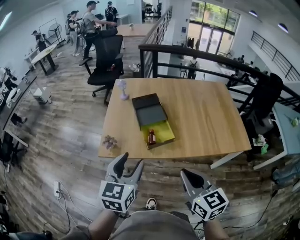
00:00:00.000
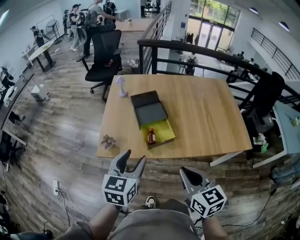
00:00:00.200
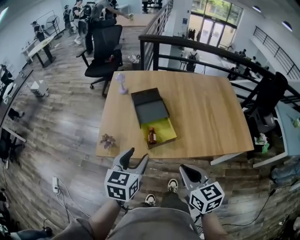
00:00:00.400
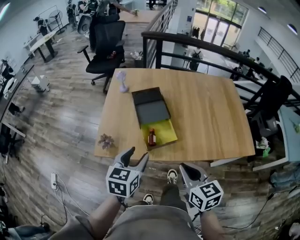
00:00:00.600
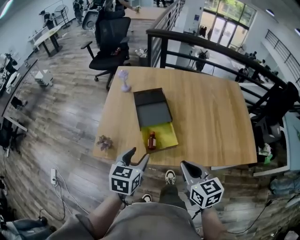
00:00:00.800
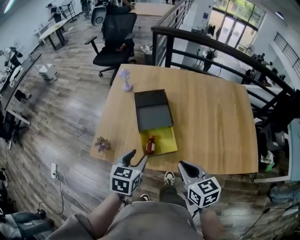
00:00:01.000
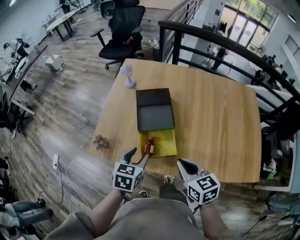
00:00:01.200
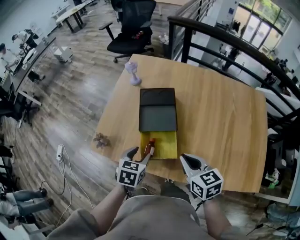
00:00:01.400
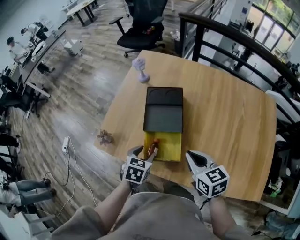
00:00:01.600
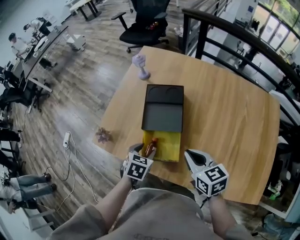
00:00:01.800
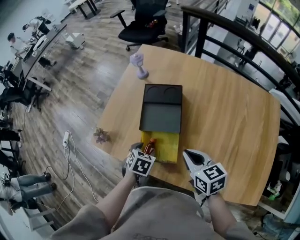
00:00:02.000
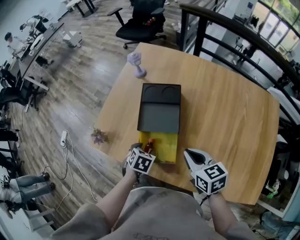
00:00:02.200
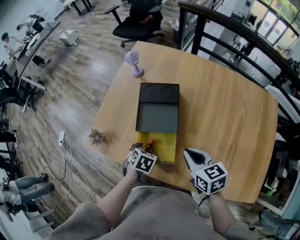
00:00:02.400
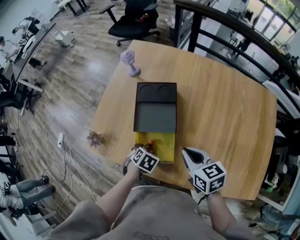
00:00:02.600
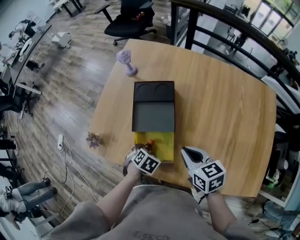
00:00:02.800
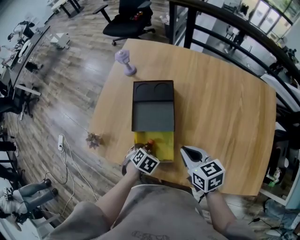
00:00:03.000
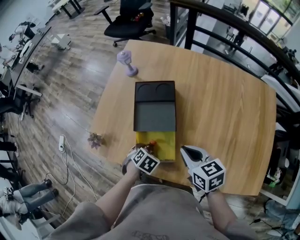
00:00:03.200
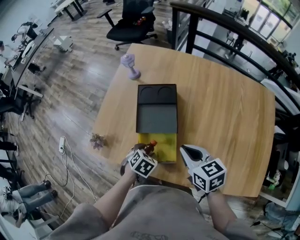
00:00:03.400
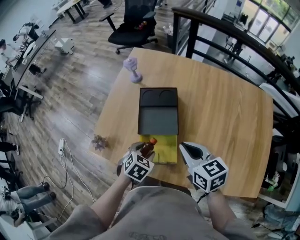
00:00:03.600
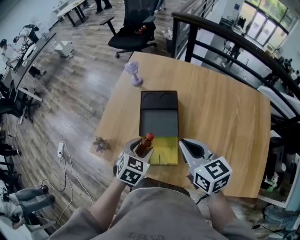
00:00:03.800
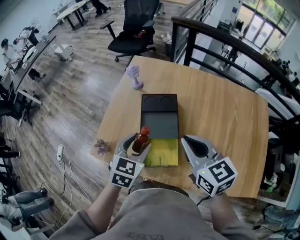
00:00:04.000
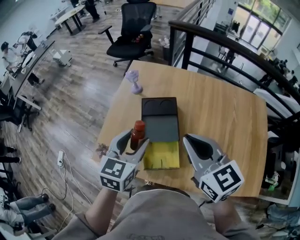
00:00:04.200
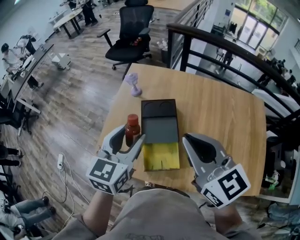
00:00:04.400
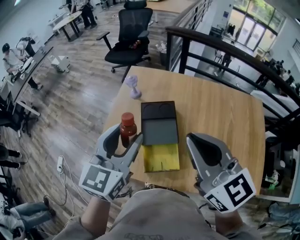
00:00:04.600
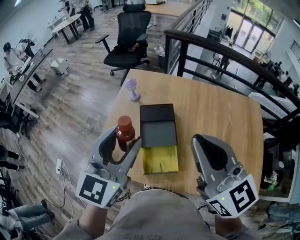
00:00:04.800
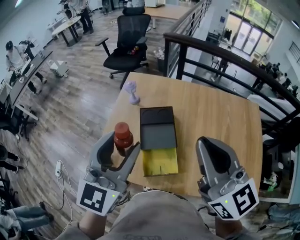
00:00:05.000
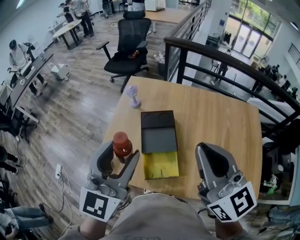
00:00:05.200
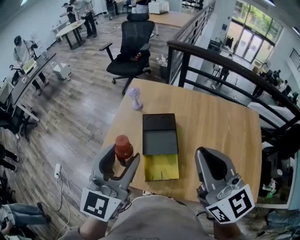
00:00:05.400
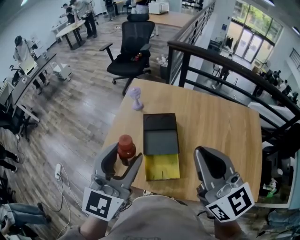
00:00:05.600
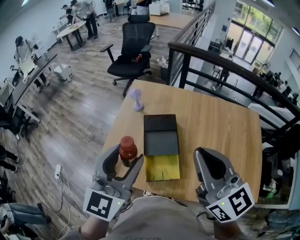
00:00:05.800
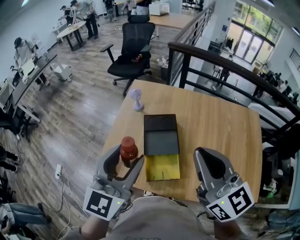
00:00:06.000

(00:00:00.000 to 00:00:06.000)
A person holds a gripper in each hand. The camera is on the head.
00:00:00.000 - 00:00:01.600: The left gripper goes some 35 cm downward and forward, and tilts its fingers about 40 degrees downward; the right gripper moves forward and downward, approximately 35 cm, and swivels roughly 30 degrees.
00:00:01.600 - 00:00:03.000: The left gripper heads downward, covering some 10 cm, and changes its angle by some 30 degrees. Meanwhile the right gripper changes place by approximately 5 cm.
00:00:03.000 - 00:00:04.400: Both grippers move upward, roughly 35 cm. The right gripper swivels about 40 degrees. The left gripper tips its fingers upward by about 60 degrees.
00:00:04.400 - 00:00:06.000: The right gripper heads upward, covering approximately 5 cm. The left gripper heads upward and backward, covering roughly 10 cm.

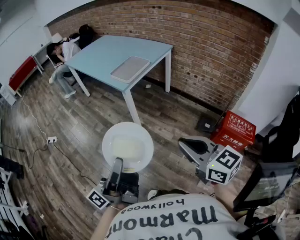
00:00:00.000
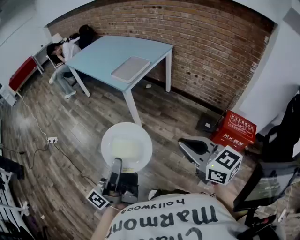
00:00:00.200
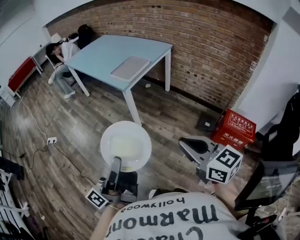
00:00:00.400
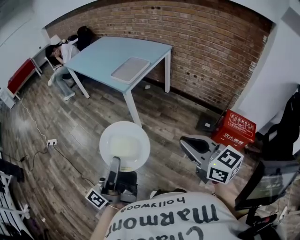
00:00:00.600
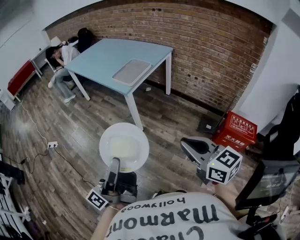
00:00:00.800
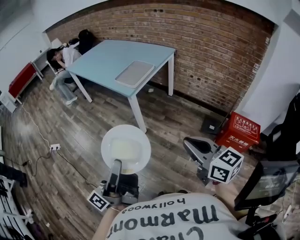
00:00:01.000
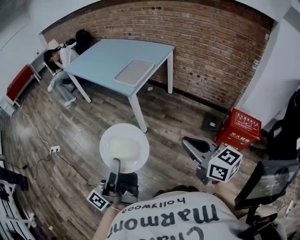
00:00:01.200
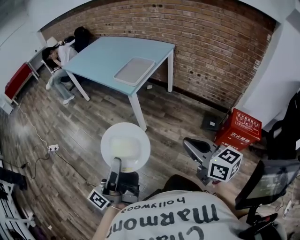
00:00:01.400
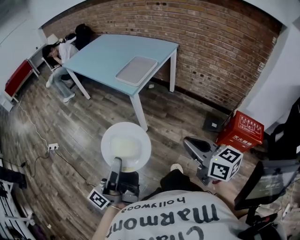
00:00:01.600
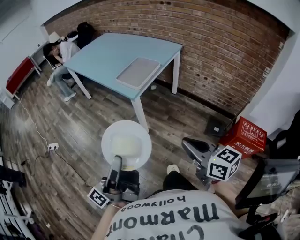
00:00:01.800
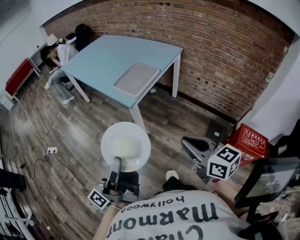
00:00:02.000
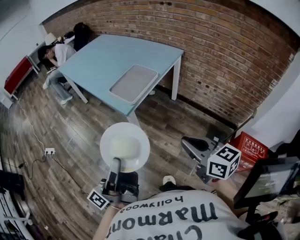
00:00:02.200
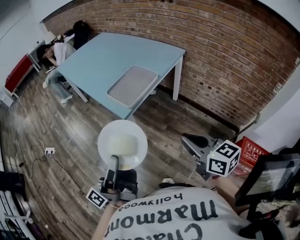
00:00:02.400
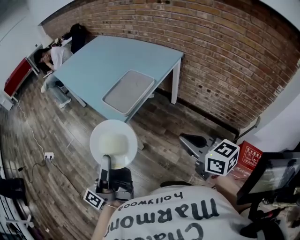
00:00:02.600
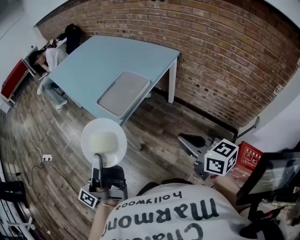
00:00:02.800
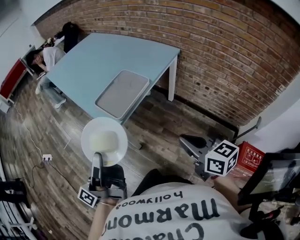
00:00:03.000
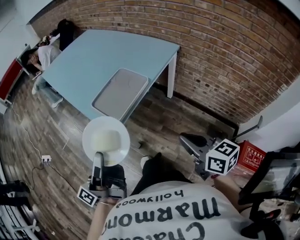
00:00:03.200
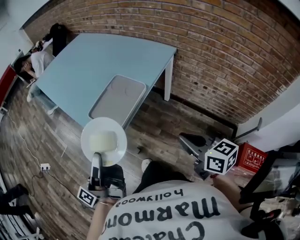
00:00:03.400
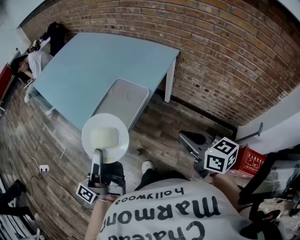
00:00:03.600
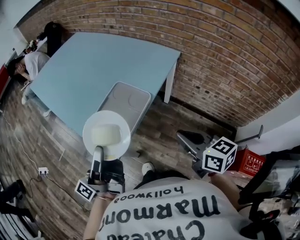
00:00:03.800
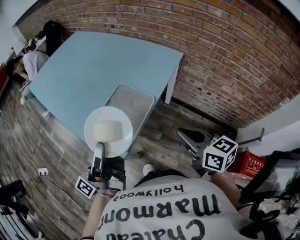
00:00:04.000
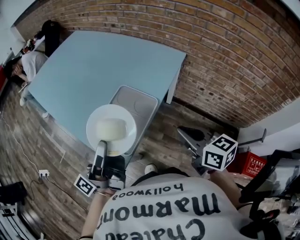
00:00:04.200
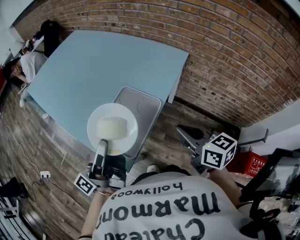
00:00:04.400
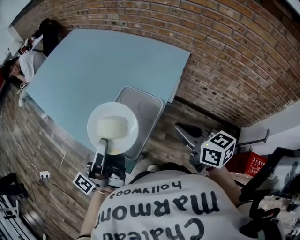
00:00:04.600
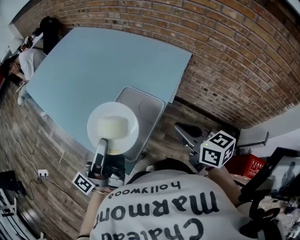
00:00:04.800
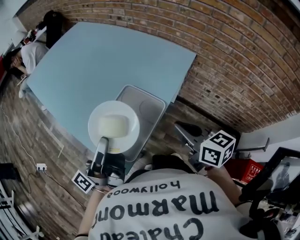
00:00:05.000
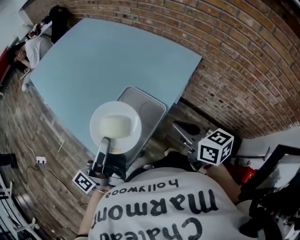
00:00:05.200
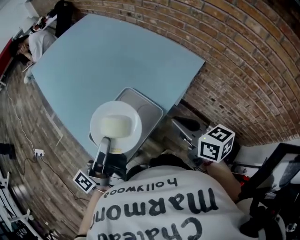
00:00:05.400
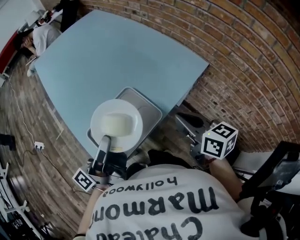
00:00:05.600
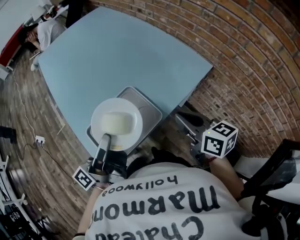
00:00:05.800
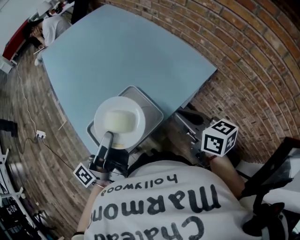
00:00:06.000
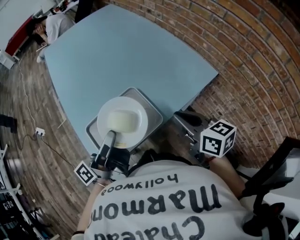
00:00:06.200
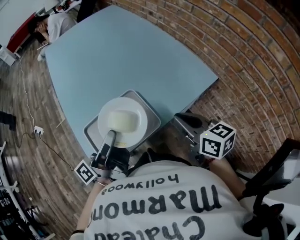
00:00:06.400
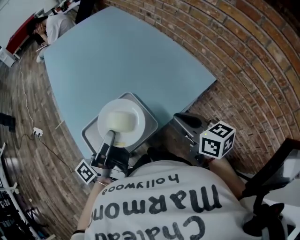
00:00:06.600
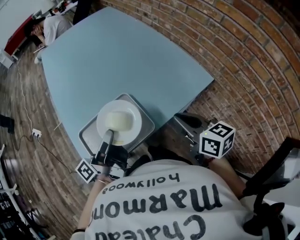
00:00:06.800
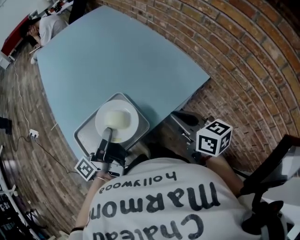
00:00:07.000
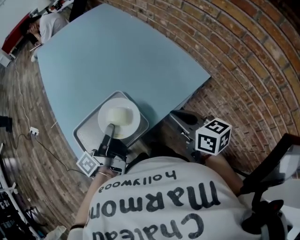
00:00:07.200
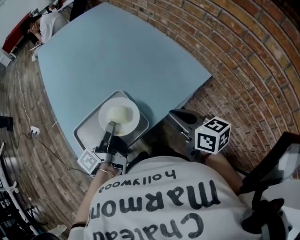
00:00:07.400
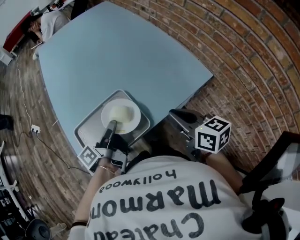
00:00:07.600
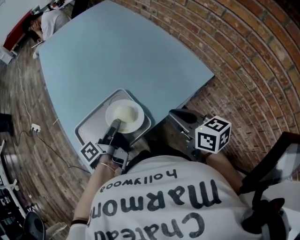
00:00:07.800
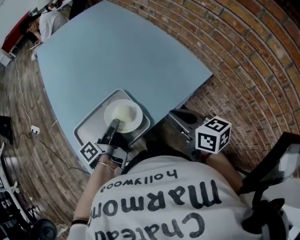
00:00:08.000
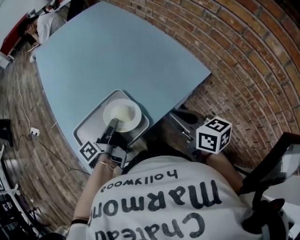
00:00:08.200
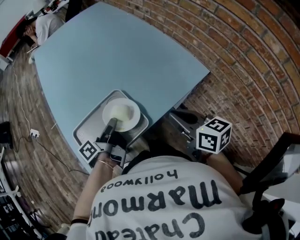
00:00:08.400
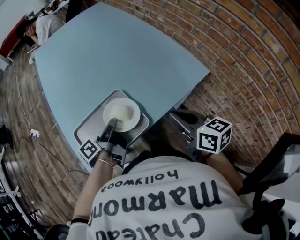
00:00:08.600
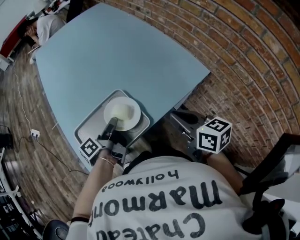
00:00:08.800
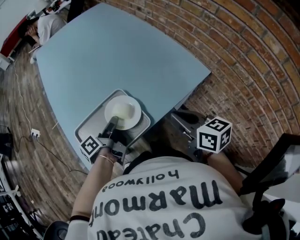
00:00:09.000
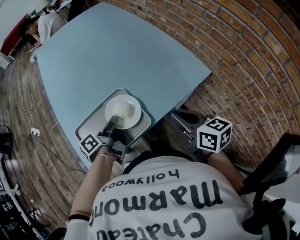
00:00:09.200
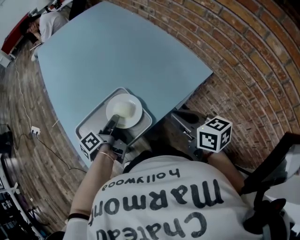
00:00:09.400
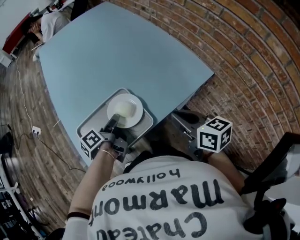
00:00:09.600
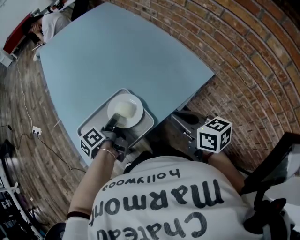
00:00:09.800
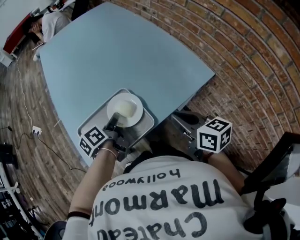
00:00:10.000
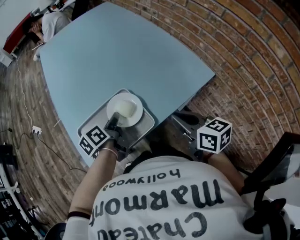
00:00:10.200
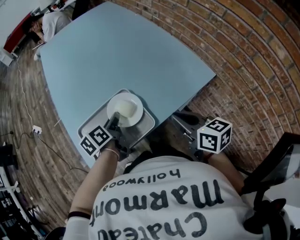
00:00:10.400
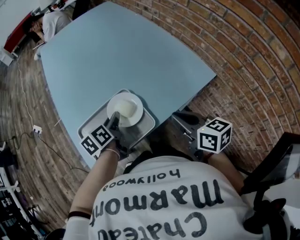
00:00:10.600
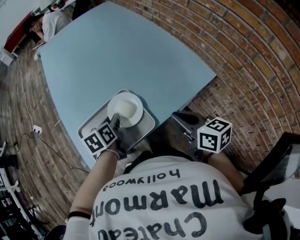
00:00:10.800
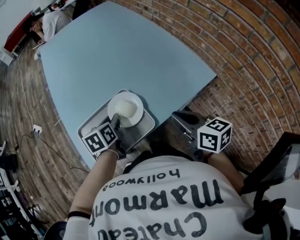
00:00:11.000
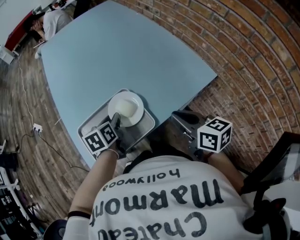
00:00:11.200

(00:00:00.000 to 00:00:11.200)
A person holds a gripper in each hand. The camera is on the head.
00:00:00.000 - 00:00:01.600: The right gripper ends up about 10 cm from where it was.
00:00:01.600 - 00:00:03.200: The right gripper ends up approximately 40 cm from where it was.
00:00:03.200 - 00:00:04.800: The right gripper ends up about 25 cm from where it was.
00:00:04.800 - 00:00:06.400: The right gripper shifts by about 15 cm, and rotates some 20 degrees.

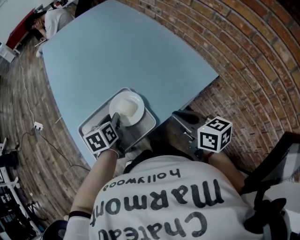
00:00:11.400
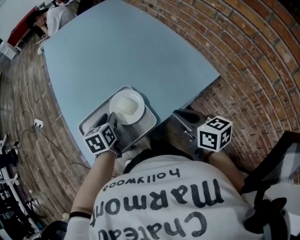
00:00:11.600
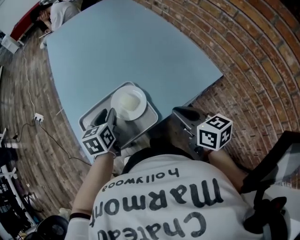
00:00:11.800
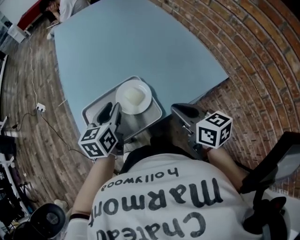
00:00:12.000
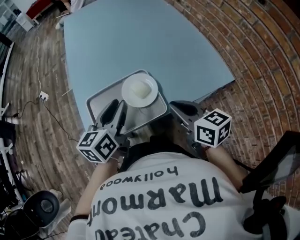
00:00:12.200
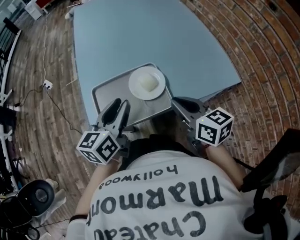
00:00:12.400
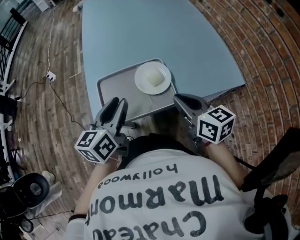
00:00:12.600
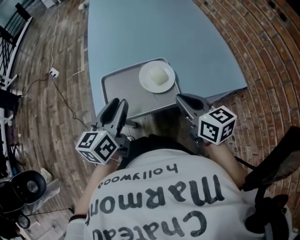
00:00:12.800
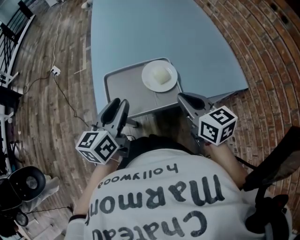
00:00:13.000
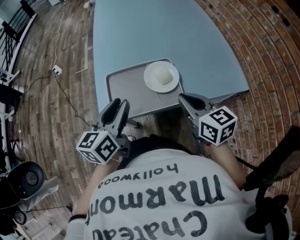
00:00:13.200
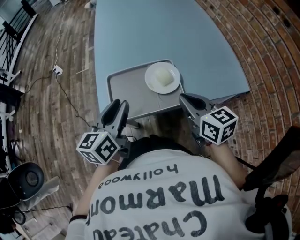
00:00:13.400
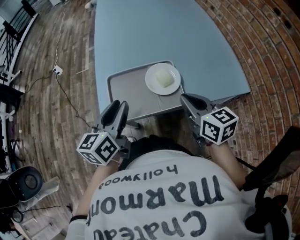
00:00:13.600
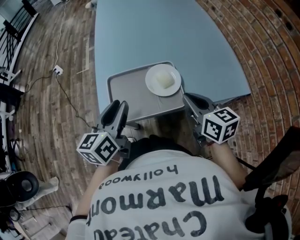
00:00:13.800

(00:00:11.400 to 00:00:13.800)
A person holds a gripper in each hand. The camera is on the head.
00:00:11.400 - 00:00:12.600: The right gripper changes place by roughly 10 cm.

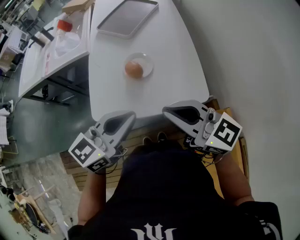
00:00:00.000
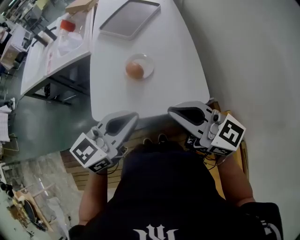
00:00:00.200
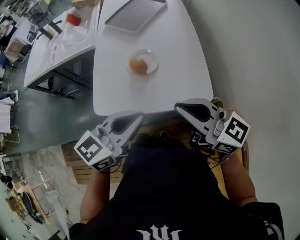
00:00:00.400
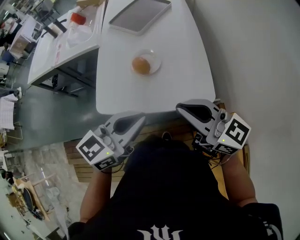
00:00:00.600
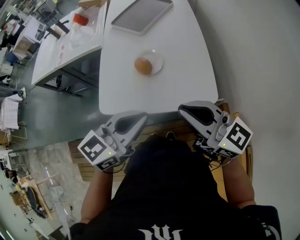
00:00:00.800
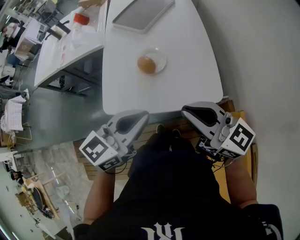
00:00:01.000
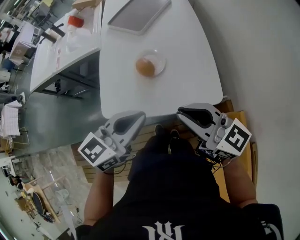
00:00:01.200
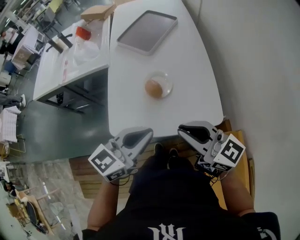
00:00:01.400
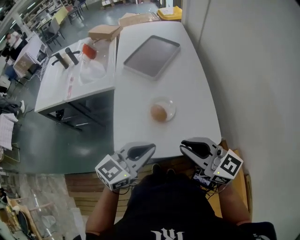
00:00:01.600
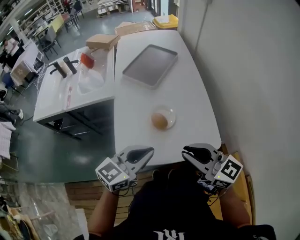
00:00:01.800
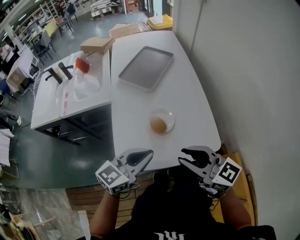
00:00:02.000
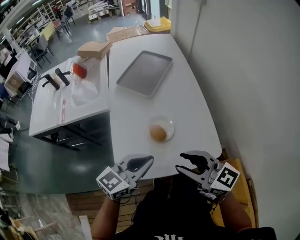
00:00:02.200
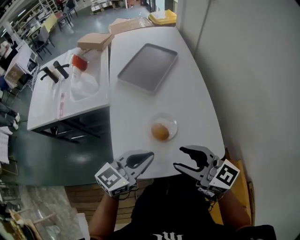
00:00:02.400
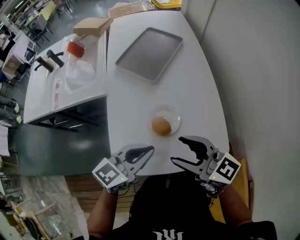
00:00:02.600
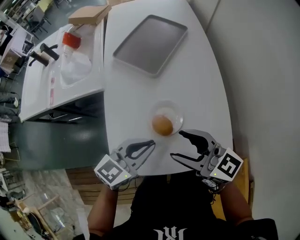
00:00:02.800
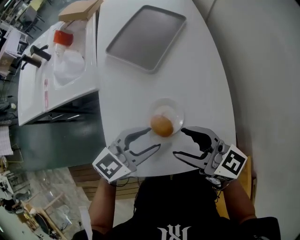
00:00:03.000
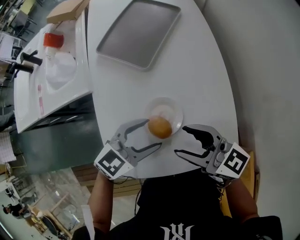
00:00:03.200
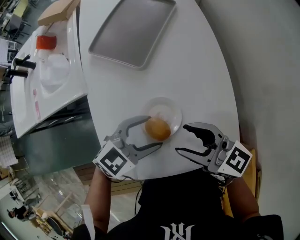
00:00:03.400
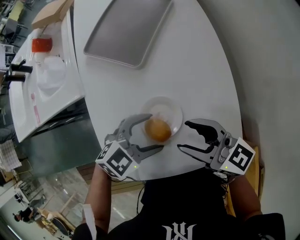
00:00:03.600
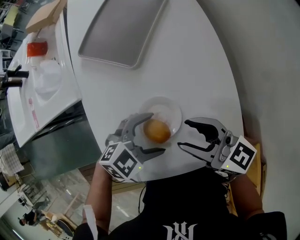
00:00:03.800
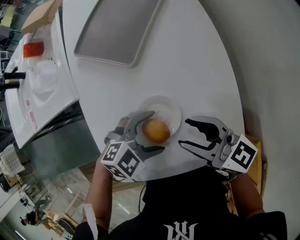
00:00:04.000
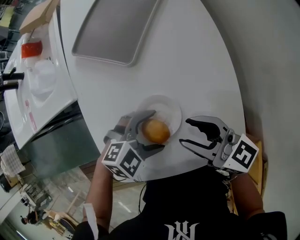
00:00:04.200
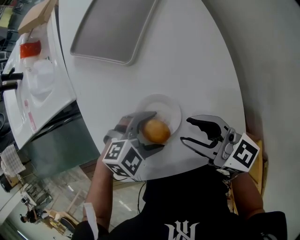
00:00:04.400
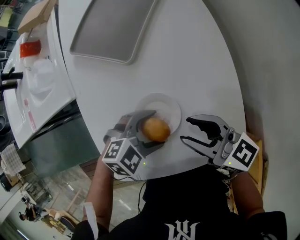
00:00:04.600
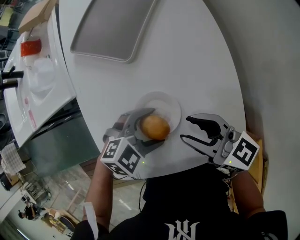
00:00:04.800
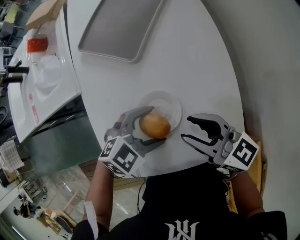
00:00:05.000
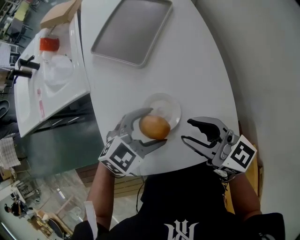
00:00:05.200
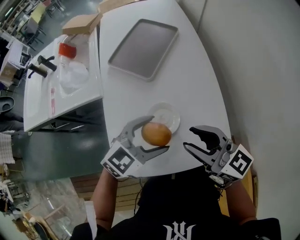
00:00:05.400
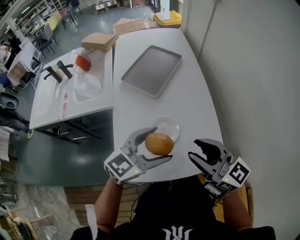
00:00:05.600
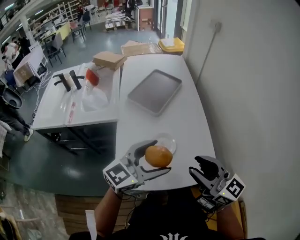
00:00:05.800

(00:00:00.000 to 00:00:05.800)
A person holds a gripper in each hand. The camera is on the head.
00:00:00.000 - 00:00:01.400: The grippers make only small movements.
00:00:01.400 - 00:00:02.800: The right gripper shifts approximately 15 cm forward and to the left, and opens, while the left gripper goes roughly 15 cm forward and downward.
00:00:02.800 - 00:00:04.400: The left gripper goes roughly 15 cm downward, rotates roughly 50 degrees, and opens. Meanwhile the right gripper shifts about 10 cm downward.
00:00:04.400 - 00:00:05.800: The grippers both shift upward by about 25 cm. The left gripper angles its fingers upward, by about 50 degrees; the right gripper changes its angle by about 30 degrees.
